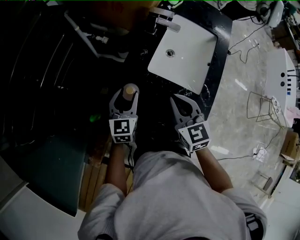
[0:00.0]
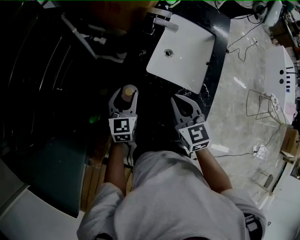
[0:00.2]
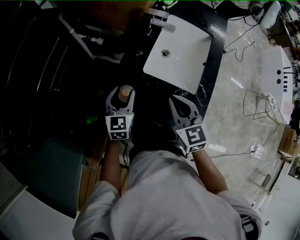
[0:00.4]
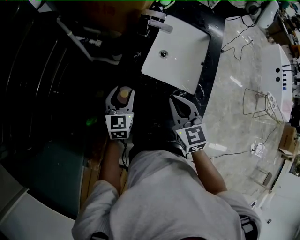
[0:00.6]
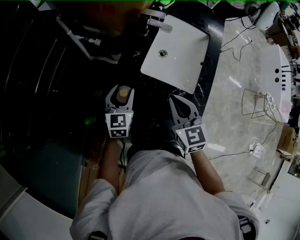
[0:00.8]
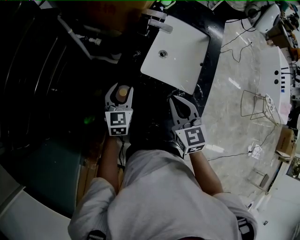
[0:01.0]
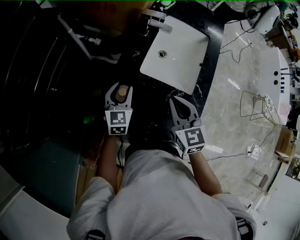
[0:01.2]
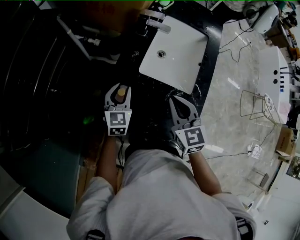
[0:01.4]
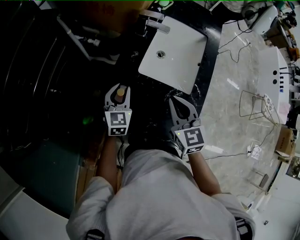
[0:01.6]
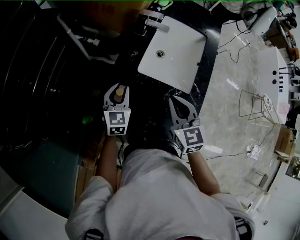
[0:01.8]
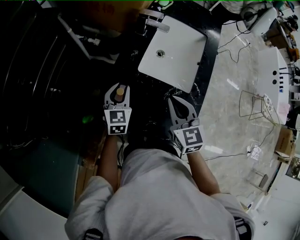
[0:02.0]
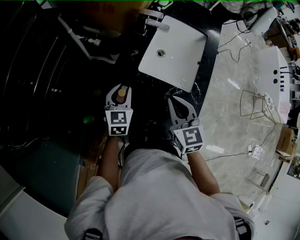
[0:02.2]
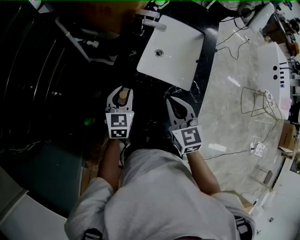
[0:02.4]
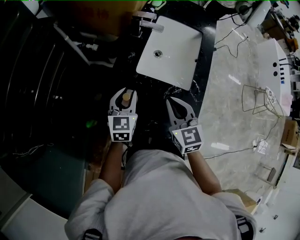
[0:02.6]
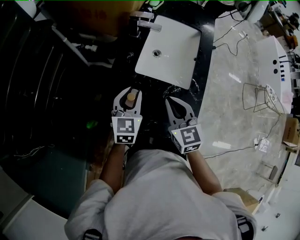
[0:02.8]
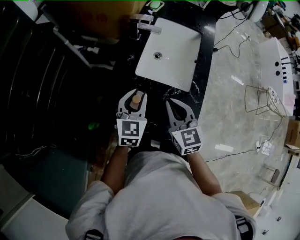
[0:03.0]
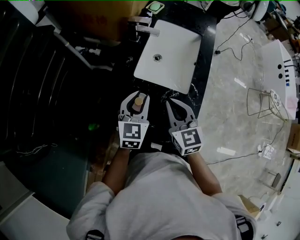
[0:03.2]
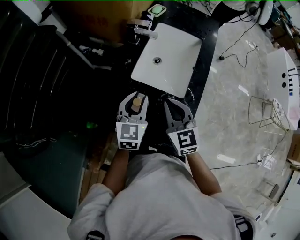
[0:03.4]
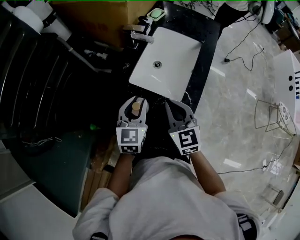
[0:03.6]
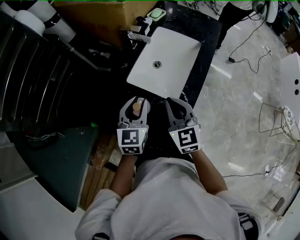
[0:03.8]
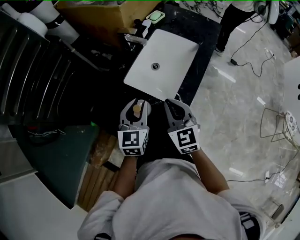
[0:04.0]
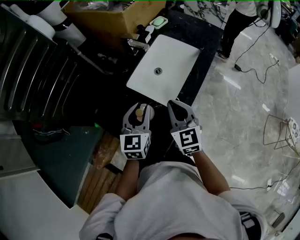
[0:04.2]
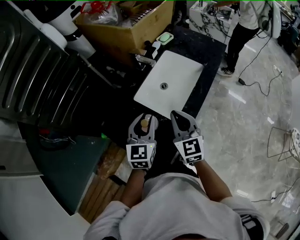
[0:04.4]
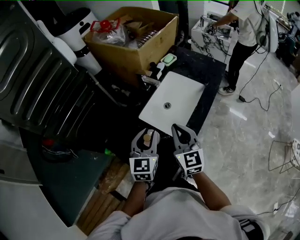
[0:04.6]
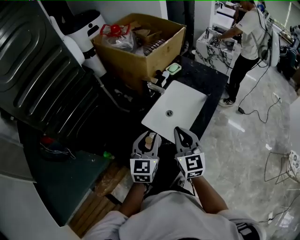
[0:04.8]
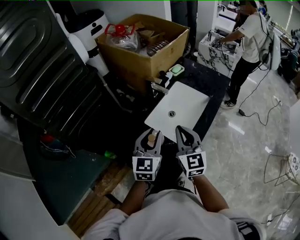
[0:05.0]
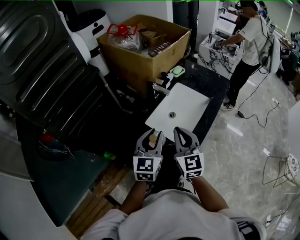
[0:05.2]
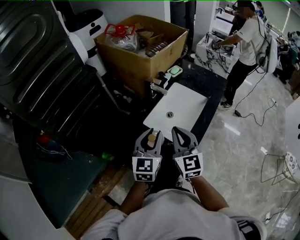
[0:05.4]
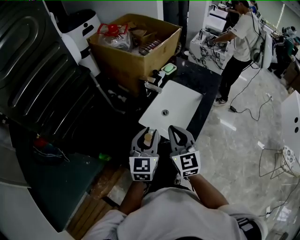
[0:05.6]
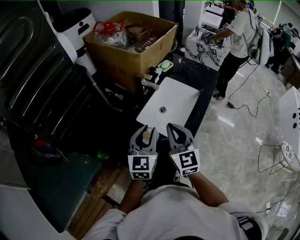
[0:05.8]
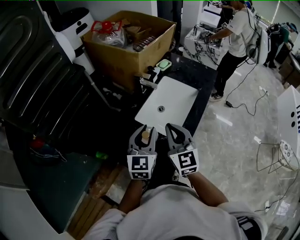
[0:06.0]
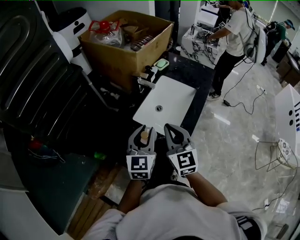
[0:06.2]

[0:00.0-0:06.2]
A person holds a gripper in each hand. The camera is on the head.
0:00.0 to 0:01.6: The grippers make only small movements.
0:01.6 to 0:03.2: The left gripper goes about 10 cm to the right and upward.
0:03.2 to 0:04.6: The two grippers go about 15 cm to the right and upward. The left gripper rotates approximately 20 degrees.
0:04.6 to 0:06.2: The right gripper changes place by some 5 cm.

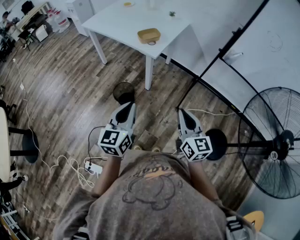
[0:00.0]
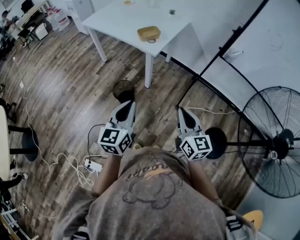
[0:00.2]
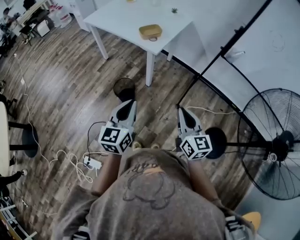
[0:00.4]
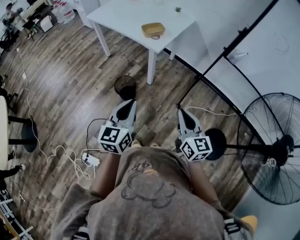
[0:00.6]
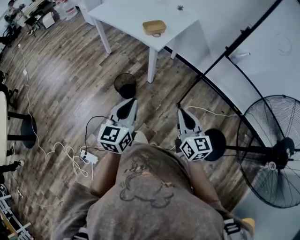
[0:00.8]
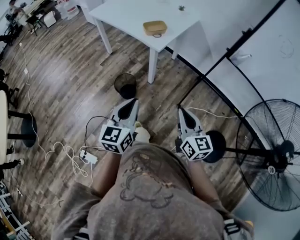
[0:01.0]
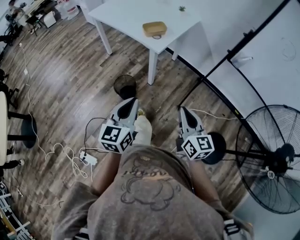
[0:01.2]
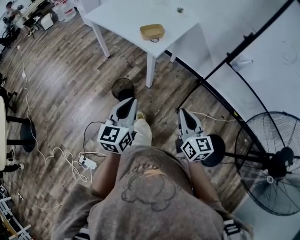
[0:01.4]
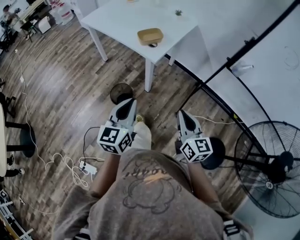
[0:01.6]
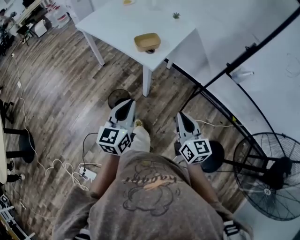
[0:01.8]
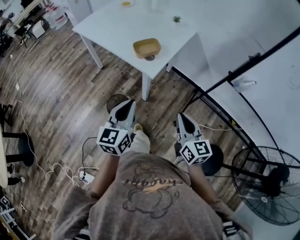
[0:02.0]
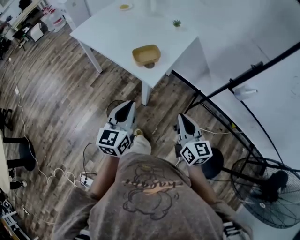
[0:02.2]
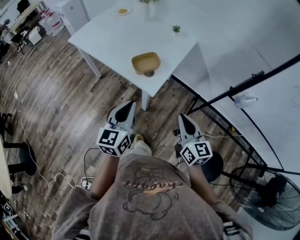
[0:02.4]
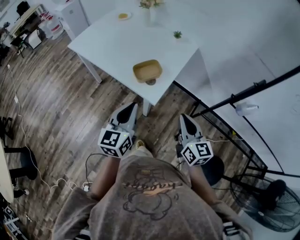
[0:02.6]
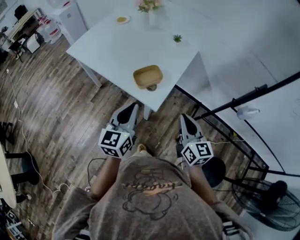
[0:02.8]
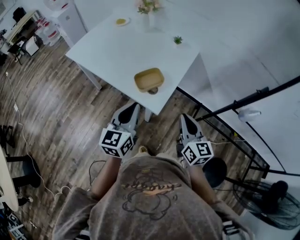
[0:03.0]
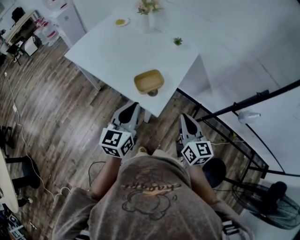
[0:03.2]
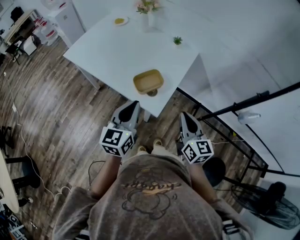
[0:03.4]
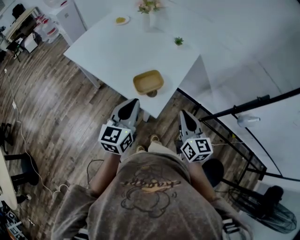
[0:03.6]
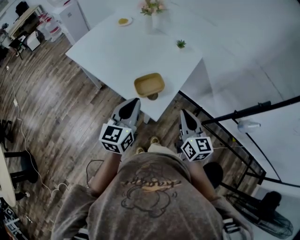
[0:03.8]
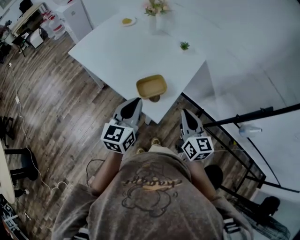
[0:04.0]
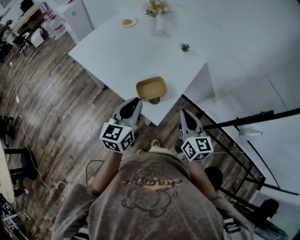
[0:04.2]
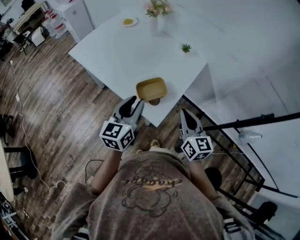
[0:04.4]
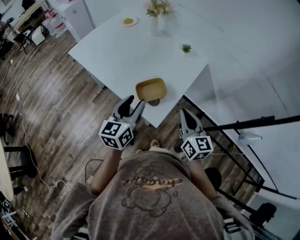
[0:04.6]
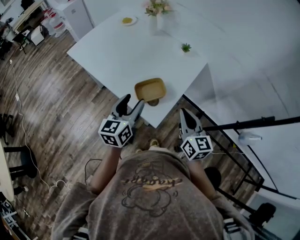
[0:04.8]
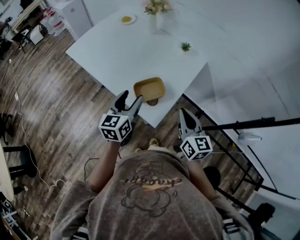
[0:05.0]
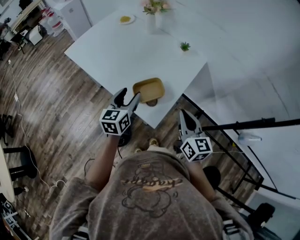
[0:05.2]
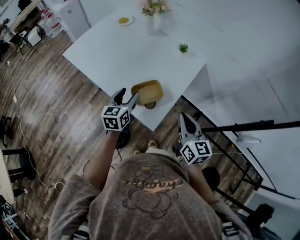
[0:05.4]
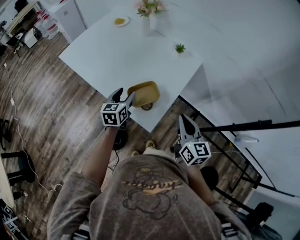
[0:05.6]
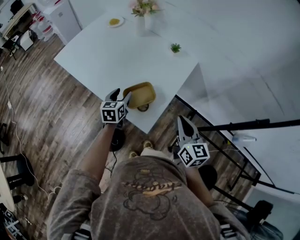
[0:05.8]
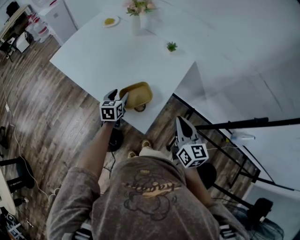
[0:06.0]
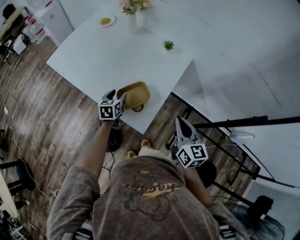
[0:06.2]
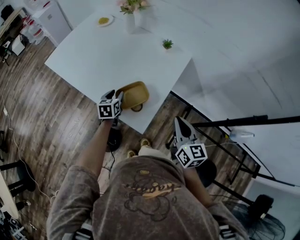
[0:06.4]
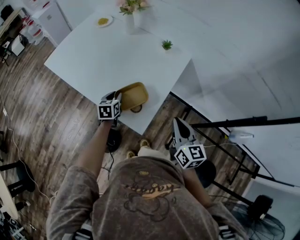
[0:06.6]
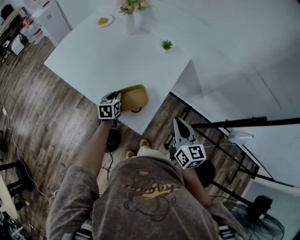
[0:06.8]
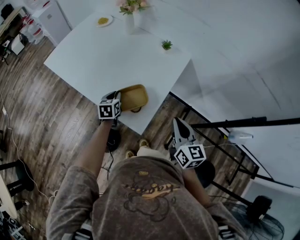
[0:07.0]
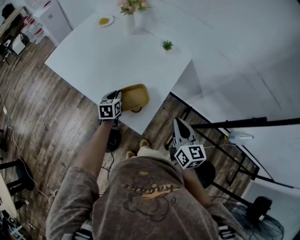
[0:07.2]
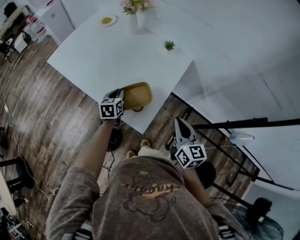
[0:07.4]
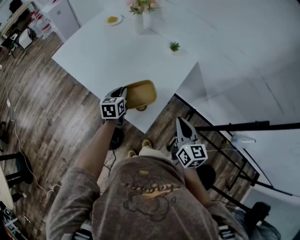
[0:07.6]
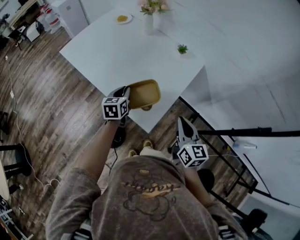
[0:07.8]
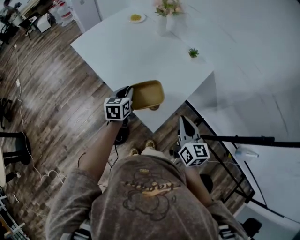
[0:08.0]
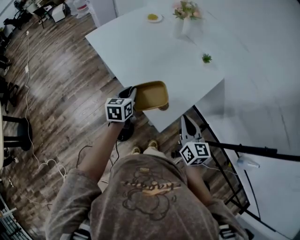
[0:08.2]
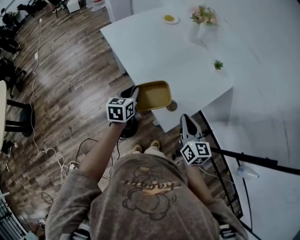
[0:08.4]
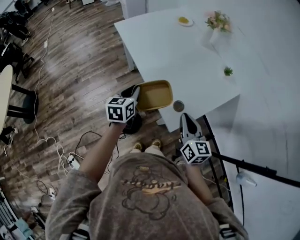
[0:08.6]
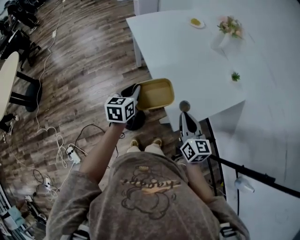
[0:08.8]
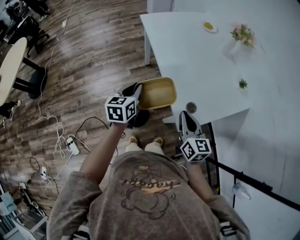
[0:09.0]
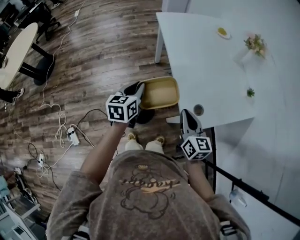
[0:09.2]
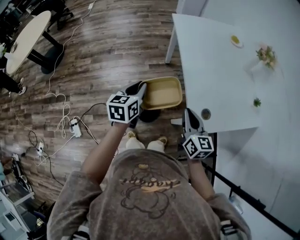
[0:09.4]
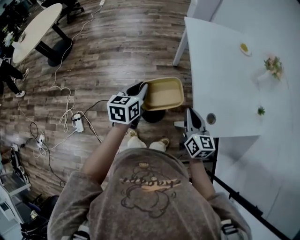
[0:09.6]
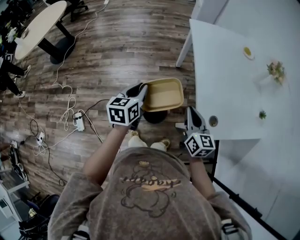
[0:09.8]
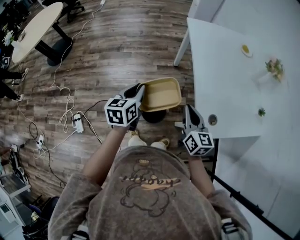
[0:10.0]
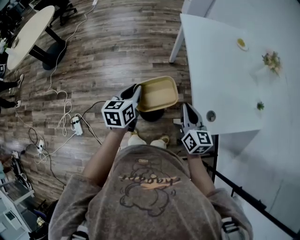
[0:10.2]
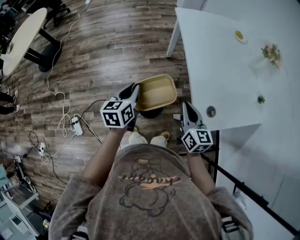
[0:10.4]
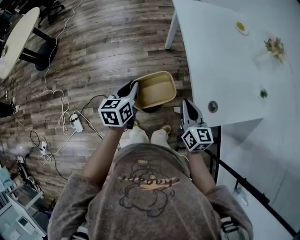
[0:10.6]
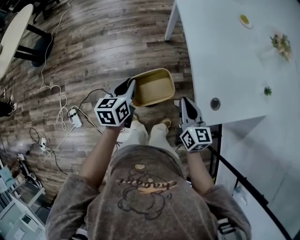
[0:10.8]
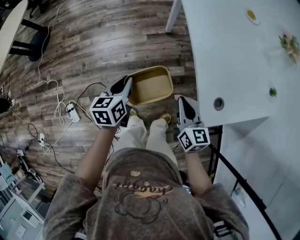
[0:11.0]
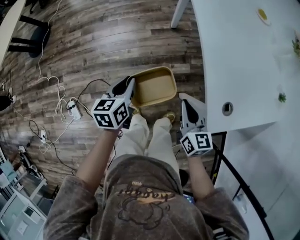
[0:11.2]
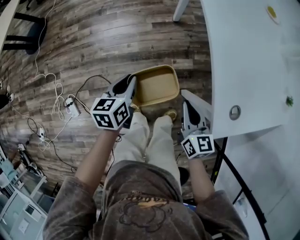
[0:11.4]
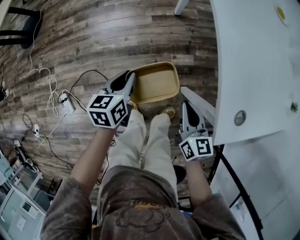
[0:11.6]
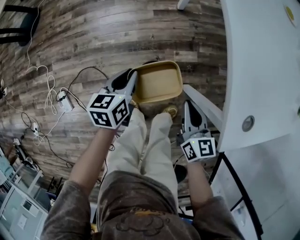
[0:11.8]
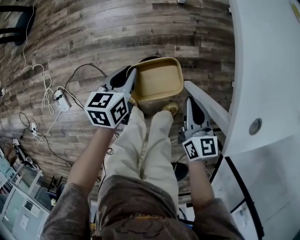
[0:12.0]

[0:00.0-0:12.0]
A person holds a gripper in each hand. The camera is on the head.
0:00.0 to 0:01.6: Both grippers travel together forward, roughly 10 cm.
0:01.6 to 0:03.0: The grippers both shift forward by about 35 cm.
0:03.0 to 0:04.4: Both grippers move forward, roughly 10 cm. The left gripper opens.
0:04.4 to 0:06.0: The left gripper shifts approximately 25 cm downward and forward, changes its angle by about 20 degrees, and opens up. Meanwhile the right gripper moves roughly 5 cm.
0:06.0 to 0:07.6: The left gripper closes its fingers.
0:07.6 to 0:09.0: The left gripper shifts by roughly 30 cm, and rotates approximately 30 degrees. The right gripper changes place by roughly 20 cm, and changes its angle by approximately 40 degrees.
0:09.0 to 0:10.4: Both grippers travel together to the left, roughly 15 cm.
0:10.4 to 0:12.0: Both grippers move downward, approximately 35 cm.

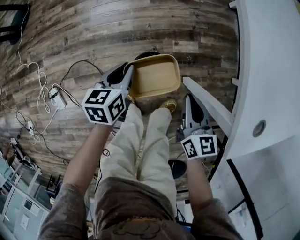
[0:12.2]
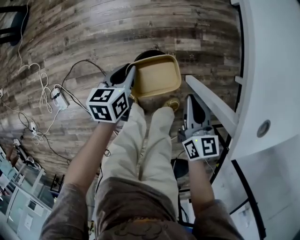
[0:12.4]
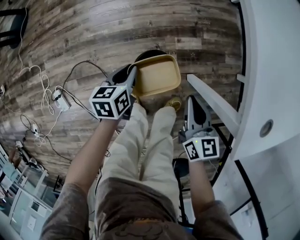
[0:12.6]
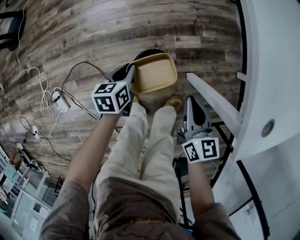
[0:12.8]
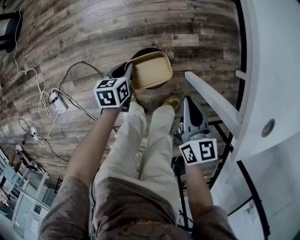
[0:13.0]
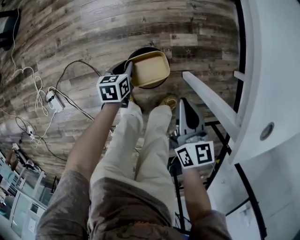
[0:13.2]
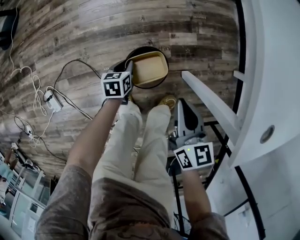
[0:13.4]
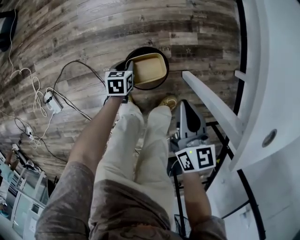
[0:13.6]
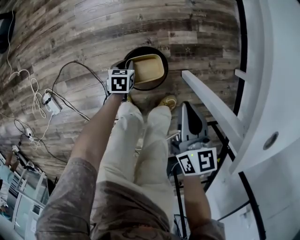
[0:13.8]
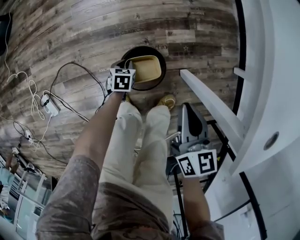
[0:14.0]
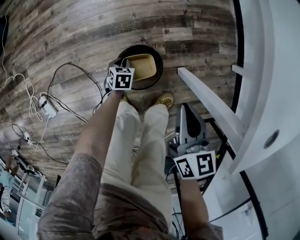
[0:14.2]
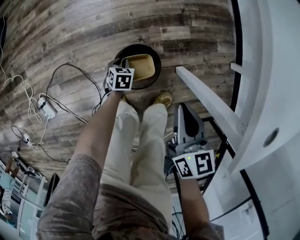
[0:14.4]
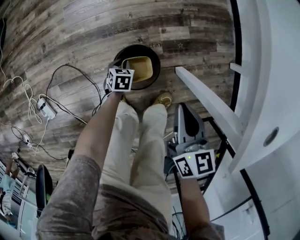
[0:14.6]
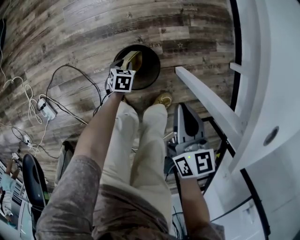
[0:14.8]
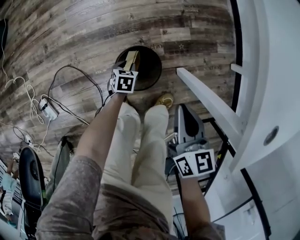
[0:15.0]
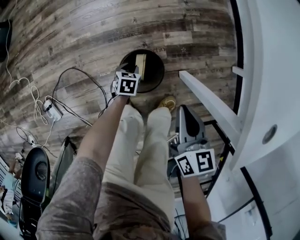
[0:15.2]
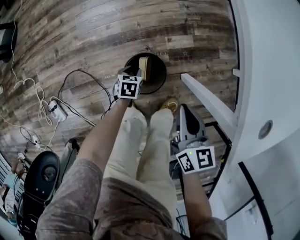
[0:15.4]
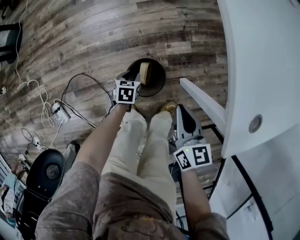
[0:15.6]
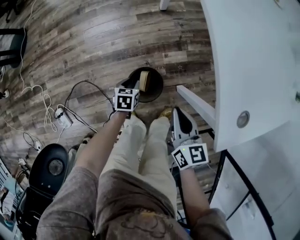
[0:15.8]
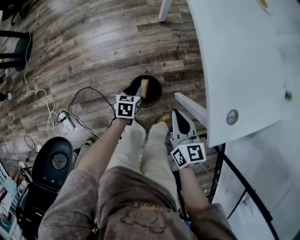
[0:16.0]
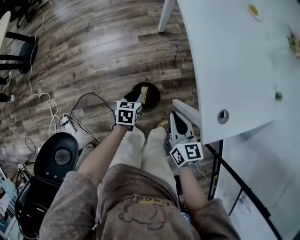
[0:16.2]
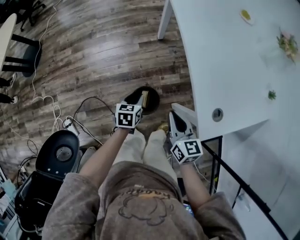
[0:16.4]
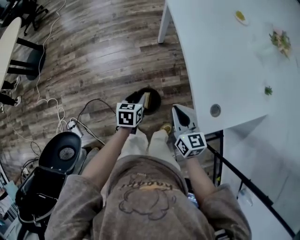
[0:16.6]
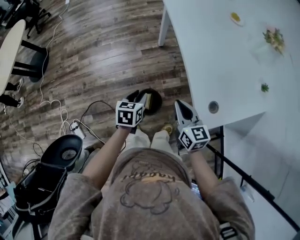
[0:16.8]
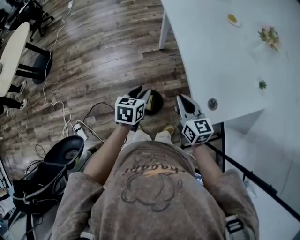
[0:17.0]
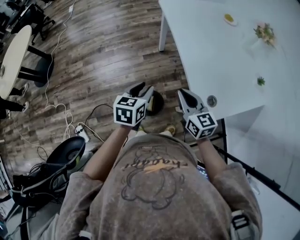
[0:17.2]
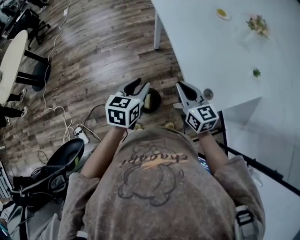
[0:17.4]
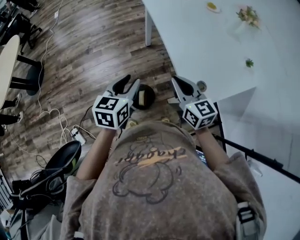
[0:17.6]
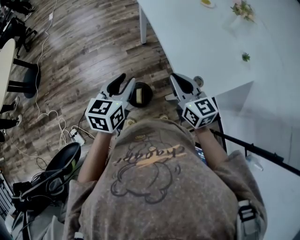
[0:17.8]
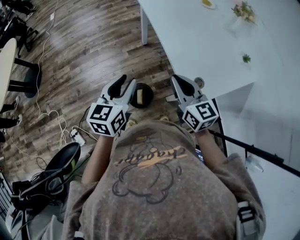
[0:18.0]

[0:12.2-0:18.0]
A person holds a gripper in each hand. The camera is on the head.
0:12.2 to 0:13.6: The left gripper heads downward, covering approximately 25 cm.
0:13.6 to 0:15.0: The left gripper goes approximately 5 cm downward.
0:15.0 to 0:16.6: The left gripper moves upward, some 50 cm, and rotates approximately 20 degrees; the right gripper shifts some 30 cm upward.
0:16.6 to 0:18.0: The right gripper is displaced upward by about 20 cm, while the left gripper goes some 30 cm upward, and angles its fingers upward, by roughly 30 degrees.
